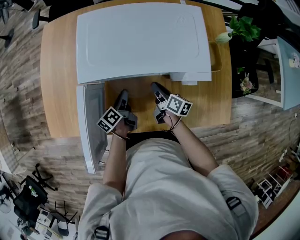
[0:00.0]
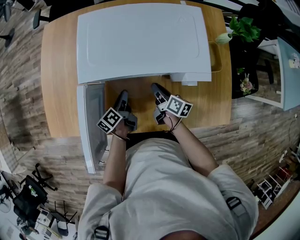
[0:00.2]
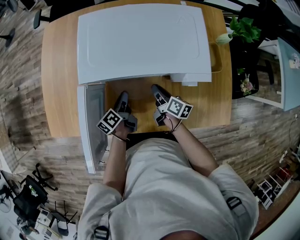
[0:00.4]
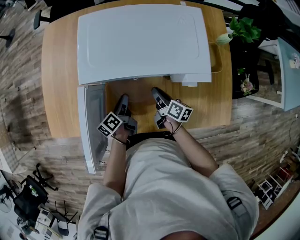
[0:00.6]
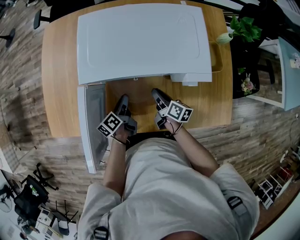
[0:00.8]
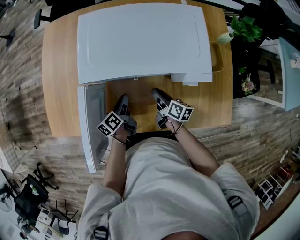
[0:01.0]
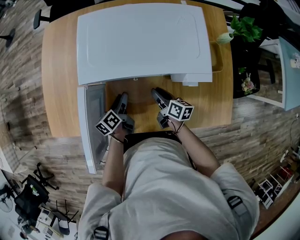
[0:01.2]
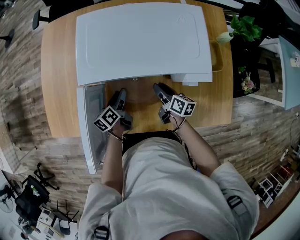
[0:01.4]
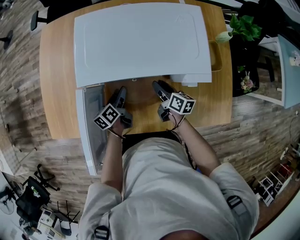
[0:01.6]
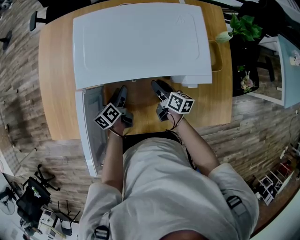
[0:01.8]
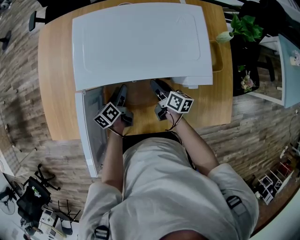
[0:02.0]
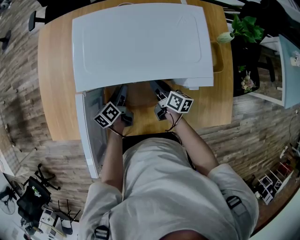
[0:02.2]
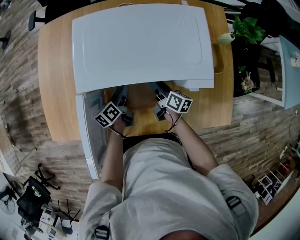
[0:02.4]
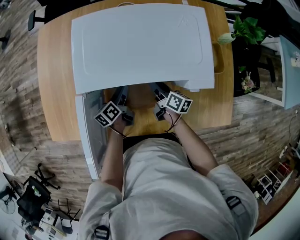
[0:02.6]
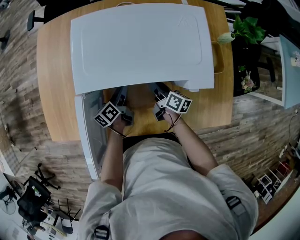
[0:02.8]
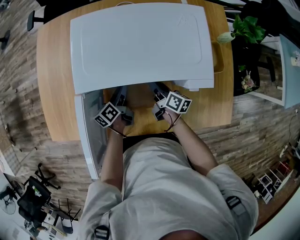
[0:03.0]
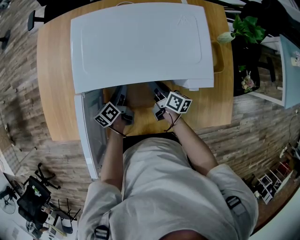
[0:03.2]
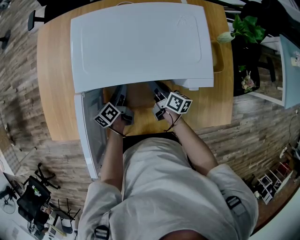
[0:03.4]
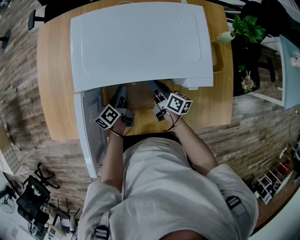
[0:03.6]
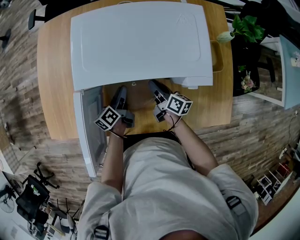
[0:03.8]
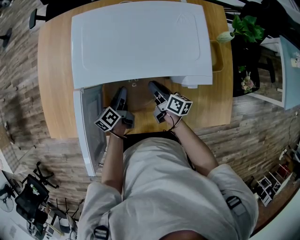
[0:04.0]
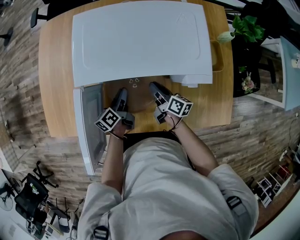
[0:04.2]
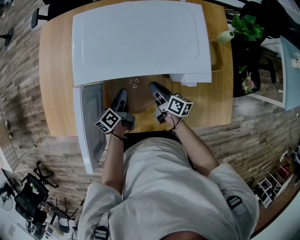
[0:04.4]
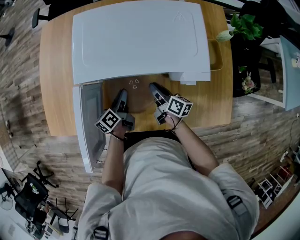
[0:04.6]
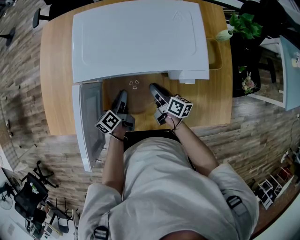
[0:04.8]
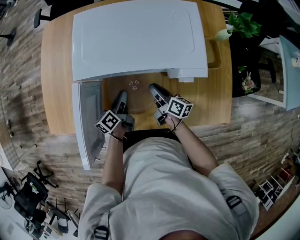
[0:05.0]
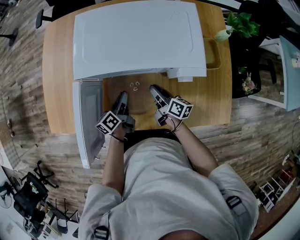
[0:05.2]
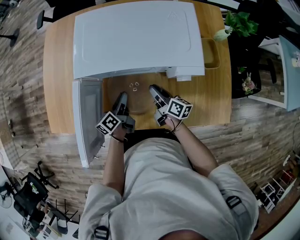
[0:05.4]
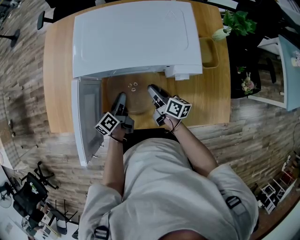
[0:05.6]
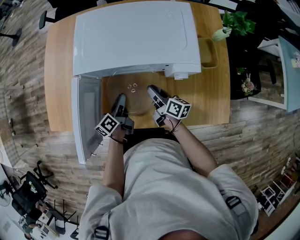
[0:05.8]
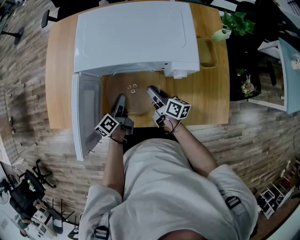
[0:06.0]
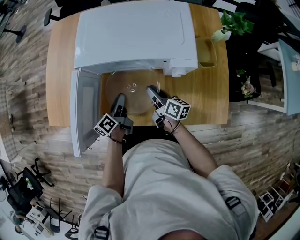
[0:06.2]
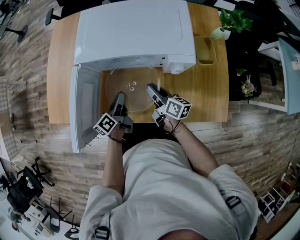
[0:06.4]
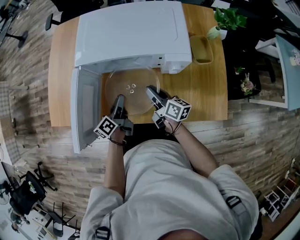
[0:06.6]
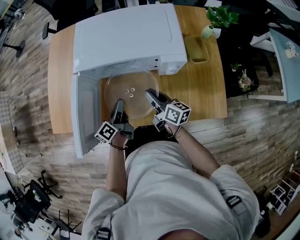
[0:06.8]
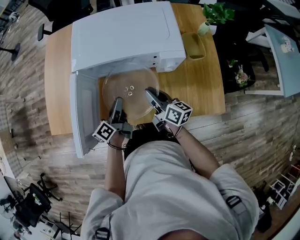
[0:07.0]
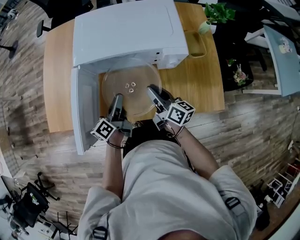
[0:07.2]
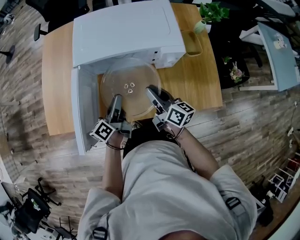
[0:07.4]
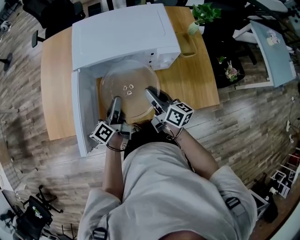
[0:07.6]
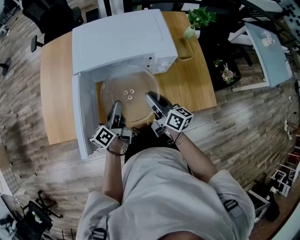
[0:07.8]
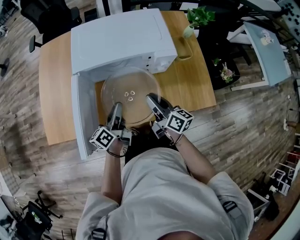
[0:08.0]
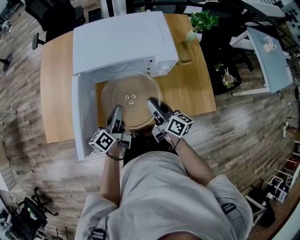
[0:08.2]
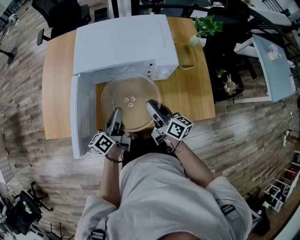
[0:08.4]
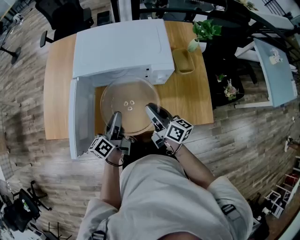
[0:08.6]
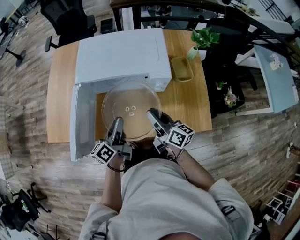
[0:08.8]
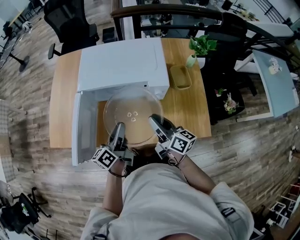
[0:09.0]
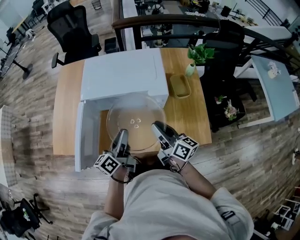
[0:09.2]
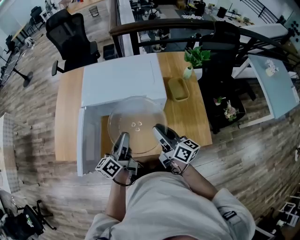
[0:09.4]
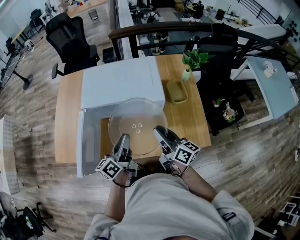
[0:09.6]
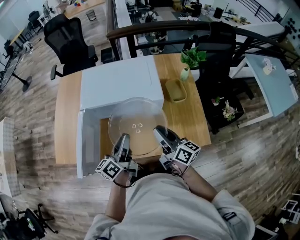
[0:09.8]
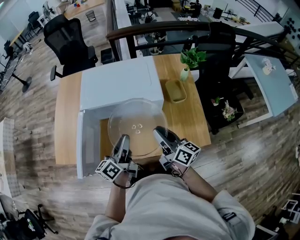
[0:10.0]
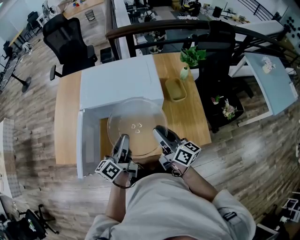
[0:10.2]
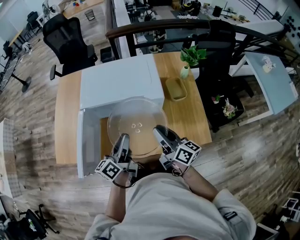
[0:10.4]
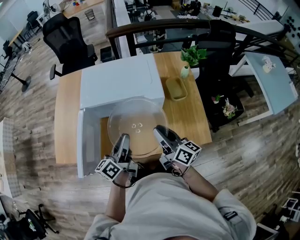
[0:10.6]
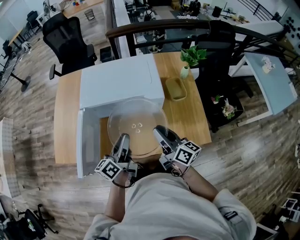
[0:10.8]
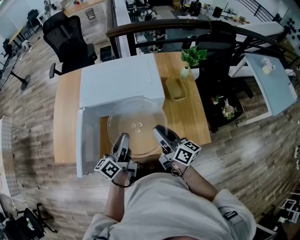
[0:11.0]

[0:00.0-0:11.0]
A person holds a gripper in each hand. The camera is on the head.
0:00.0 to 0:01.6: The left gripper opens its fingers.
0:01.6 to 0:03.2: There are only small adjustments of the grippers.
0:03.2 to 0:04.8: The left gripper travels backward by roughly 5 cm.
0:04.8 to 0:06.2: The right gripper shifts by some 5 cm; the left gripper moves roughly 5 cm.
0:06.2 to 0:07.8: The right gripper is displaced upward and backward by some 15 cm. The left gripper travels upward by about 10 cm.
0:07.8 to 0:09.4: The grippers both shift upward and to the right by approximately 10 cm.
0:09.4 to 0:11.0: There are only small adjustments of the grippers.

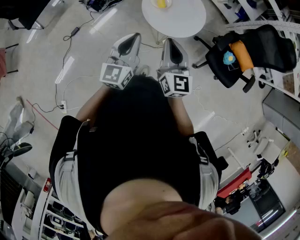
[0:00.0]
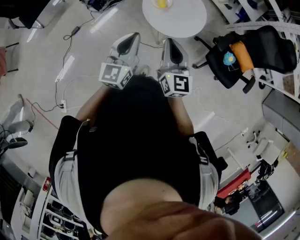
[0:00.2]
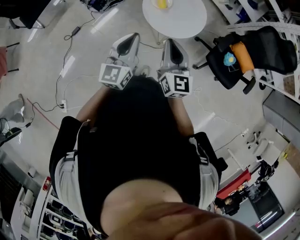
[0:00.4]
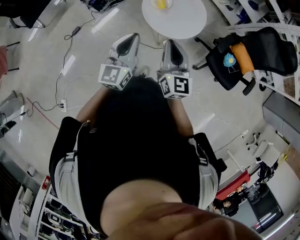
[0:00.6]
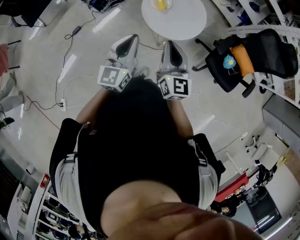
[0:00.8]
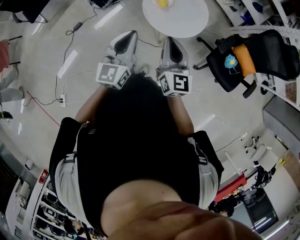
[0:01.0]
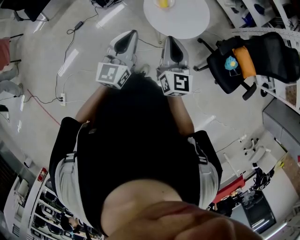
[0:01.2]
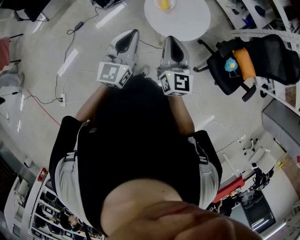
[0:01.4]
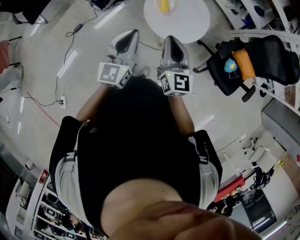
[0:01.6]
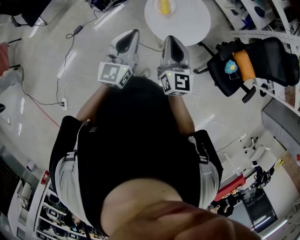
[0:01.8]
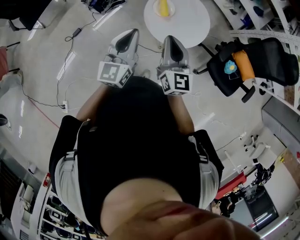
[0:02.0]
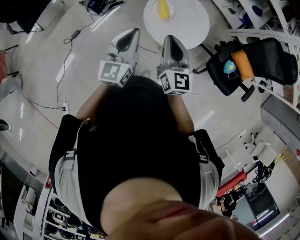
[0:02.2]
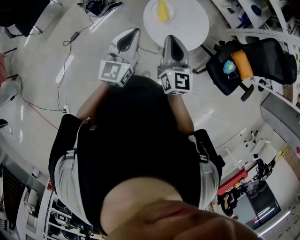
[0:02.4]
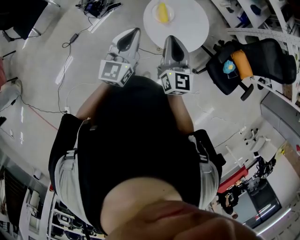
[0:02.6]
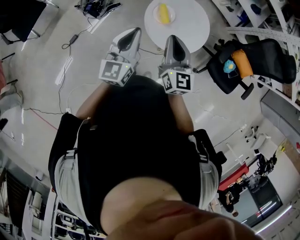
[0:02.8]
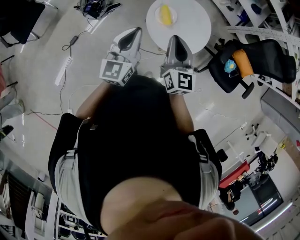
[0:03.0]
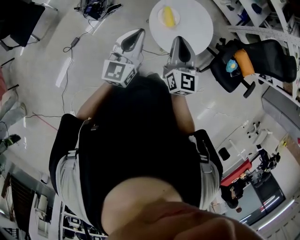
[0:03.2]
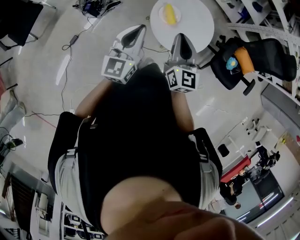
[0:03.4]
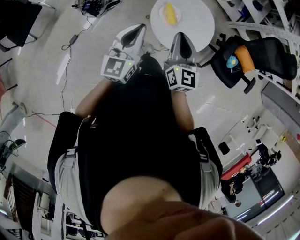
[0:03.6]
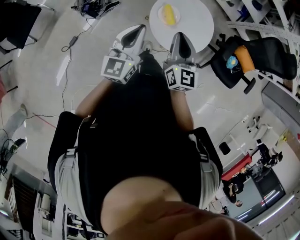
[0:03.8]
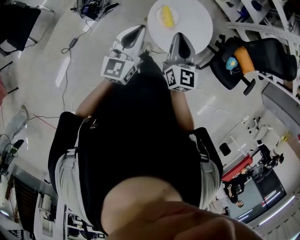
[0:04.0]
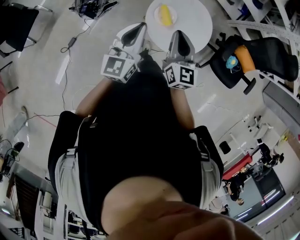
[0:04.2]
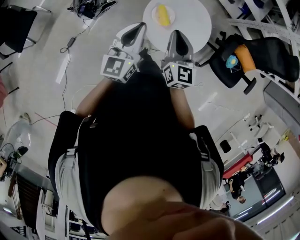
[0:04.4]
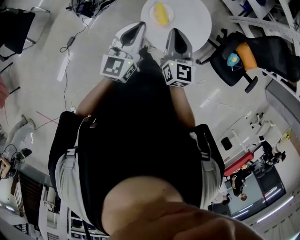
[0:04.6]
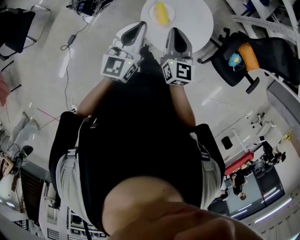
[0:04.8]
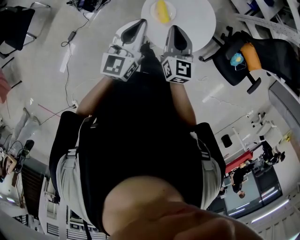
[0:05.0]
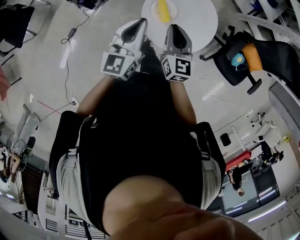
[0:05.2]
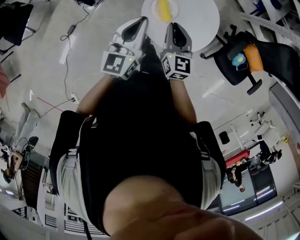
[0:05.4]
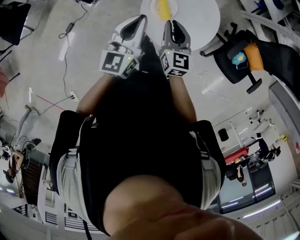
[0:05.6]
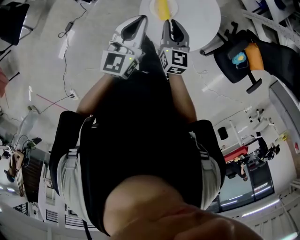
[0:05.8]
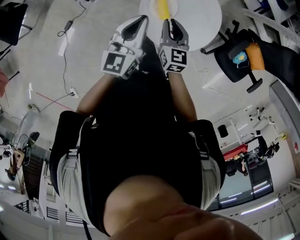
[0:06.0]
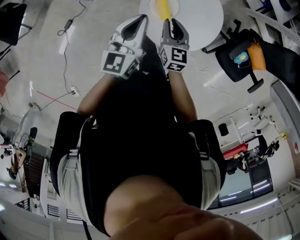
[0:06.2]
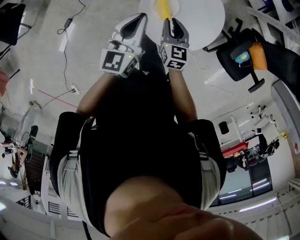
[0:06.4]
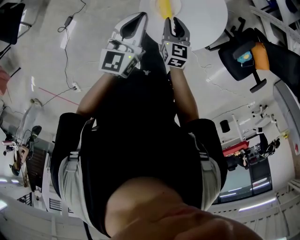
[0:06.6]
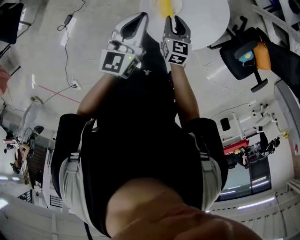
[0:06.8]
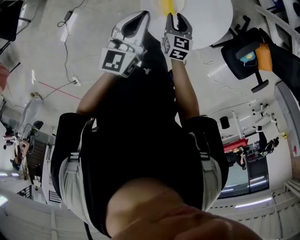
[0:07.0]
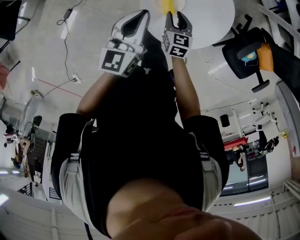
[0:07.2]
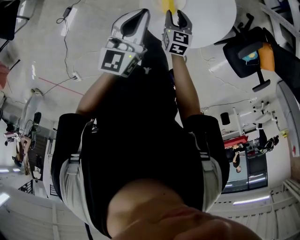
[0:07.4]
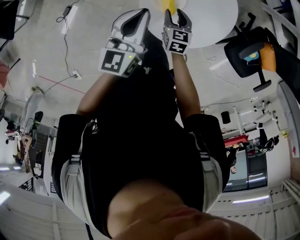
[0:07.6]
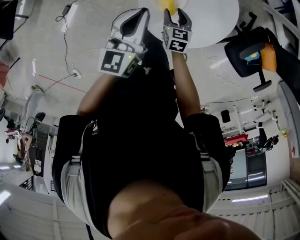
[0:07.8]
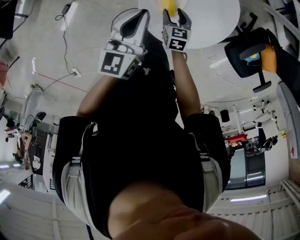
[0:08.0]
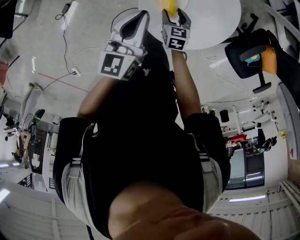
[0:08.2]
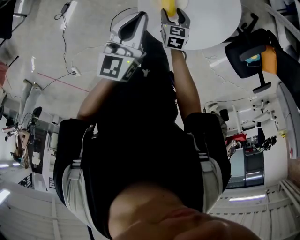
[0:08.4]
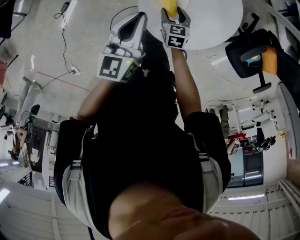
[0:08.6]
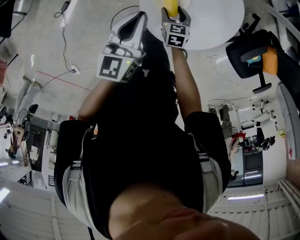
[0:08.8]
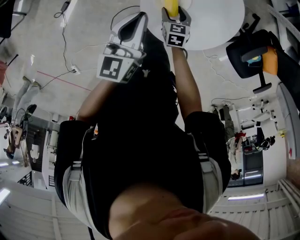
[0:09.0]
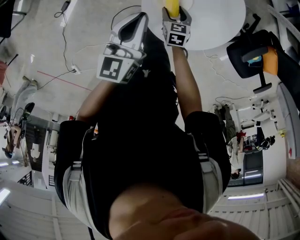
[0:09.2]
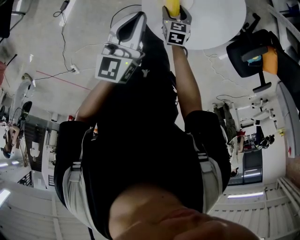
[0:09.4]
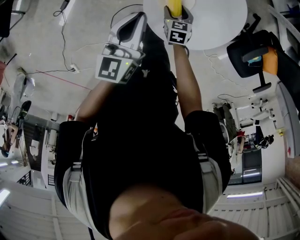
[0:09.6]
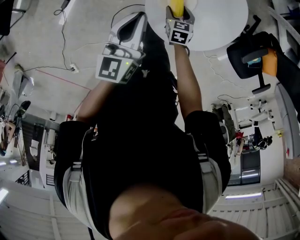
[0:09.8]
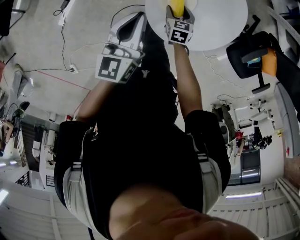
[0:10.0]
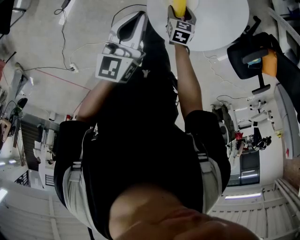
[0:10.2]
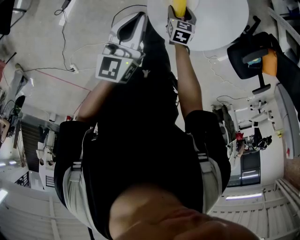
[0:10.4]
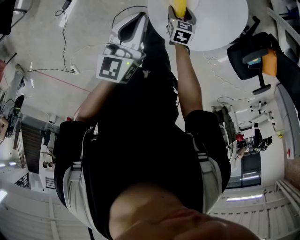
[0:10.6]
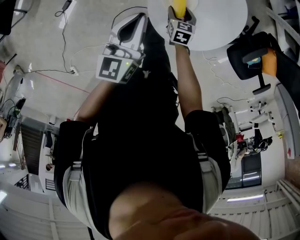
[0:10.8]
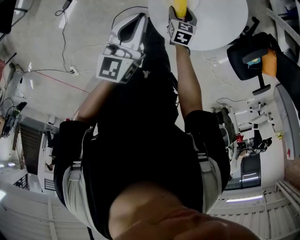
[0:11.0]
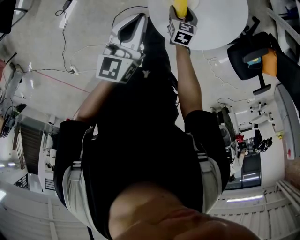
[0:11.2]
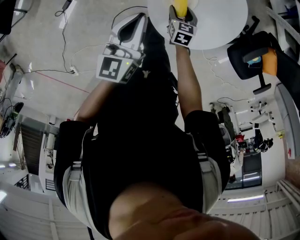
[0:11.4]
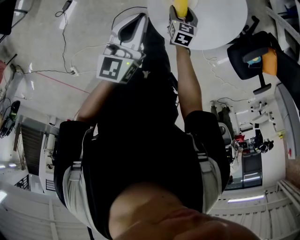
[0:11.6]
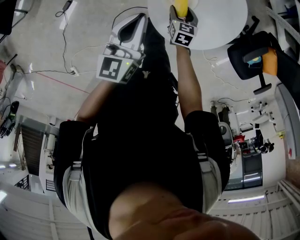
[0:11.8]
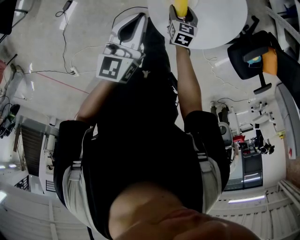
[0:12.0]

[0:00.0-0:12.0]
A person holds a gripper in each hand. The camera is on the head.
0:00.0 to 0:01.6: Both grippers travel together forward, about 5 cm.
0:01.6 to 0:03.0: Both grippers move forward and to the left, about 15 cm.
0:03.0 to 0:04.4: Both grippers move forward, approximately 10 cm.
0:04.4 to 0:06.0: The left gripper travels forward and downward by some 15 cm. The right gripper travels downward and forward by roughly 20 cm.
0:06.0 to 0:07.6: The left gripper is displaced downward by approximately 10 cm, while the right gripper moves downward, roughly 20 cm, swivels about 20 degrees, and opens its fingers.
0:07.6 to 0:09.0: The right gripper moves downward, roughly 5 cm.
0:09.0 to 0:12.0: There are only small adjustments of the grippers.

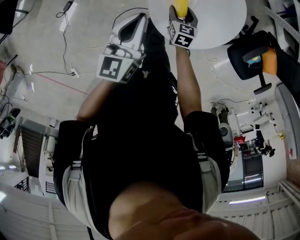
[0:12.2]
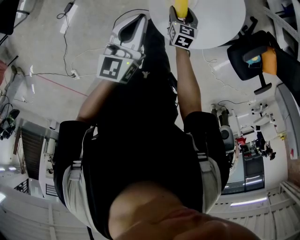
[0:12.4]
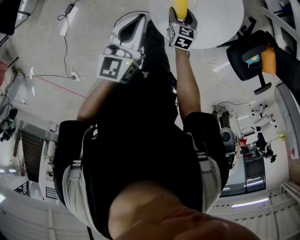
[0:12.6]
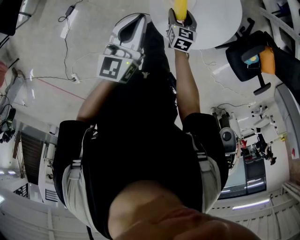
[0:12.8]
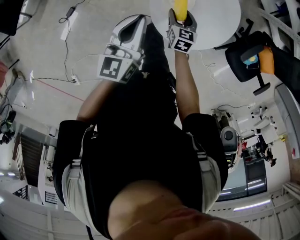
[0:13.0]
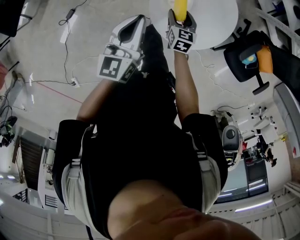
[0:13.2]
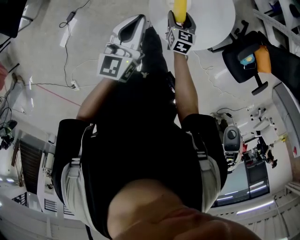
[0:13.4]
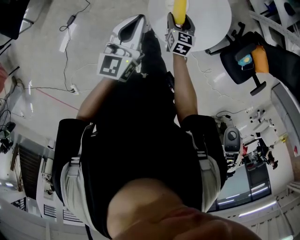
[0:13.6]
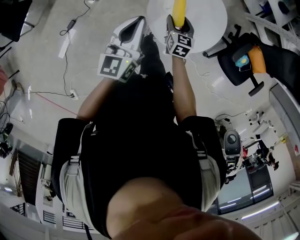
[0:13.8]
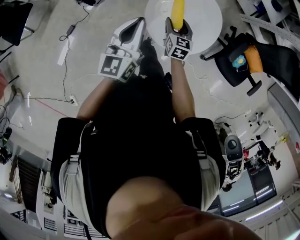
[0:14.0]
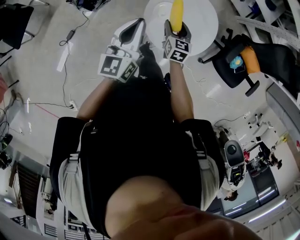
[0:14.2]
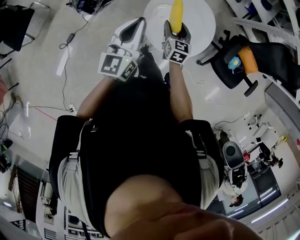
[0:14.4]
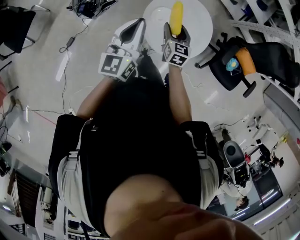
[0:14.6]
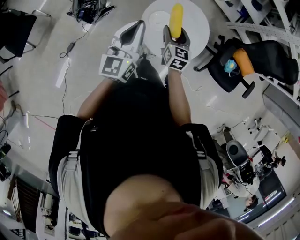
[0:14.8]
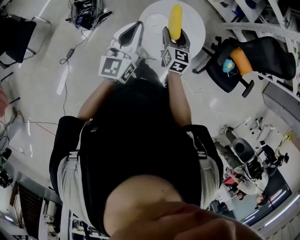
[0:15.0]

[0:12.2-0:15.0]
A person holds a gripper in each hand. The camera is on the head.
0:12.2 to 0:13.6: Both grippers move upward, some 10 cm.
0:13.6 to 0:15.0: The left gripper travels upward by approximately 10 cm, while the right gripper heads upward, covering about 20 cm.
